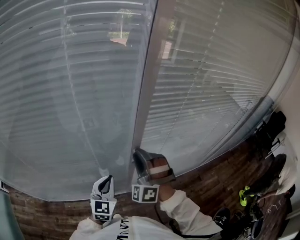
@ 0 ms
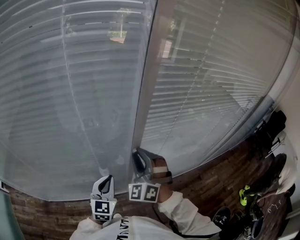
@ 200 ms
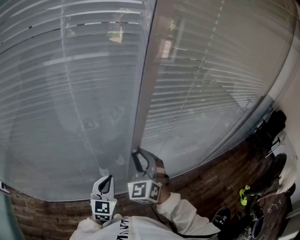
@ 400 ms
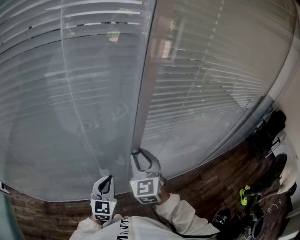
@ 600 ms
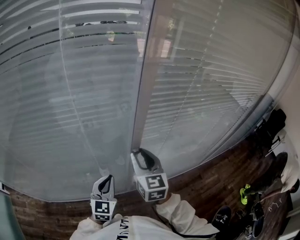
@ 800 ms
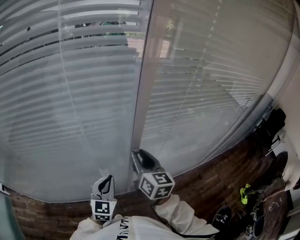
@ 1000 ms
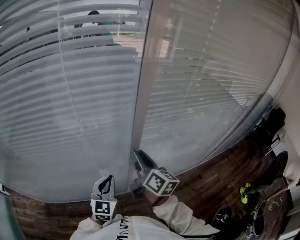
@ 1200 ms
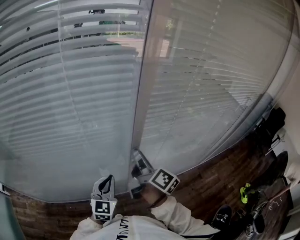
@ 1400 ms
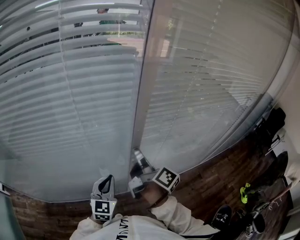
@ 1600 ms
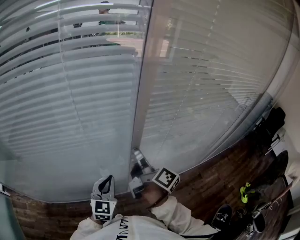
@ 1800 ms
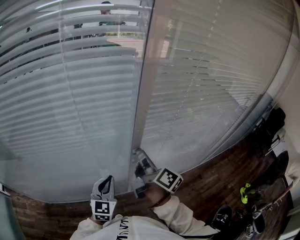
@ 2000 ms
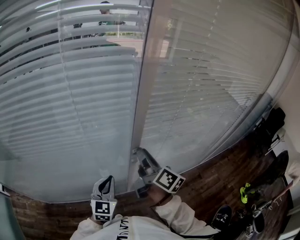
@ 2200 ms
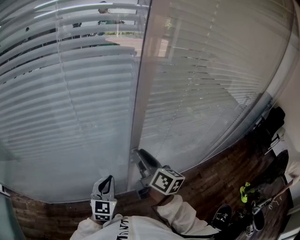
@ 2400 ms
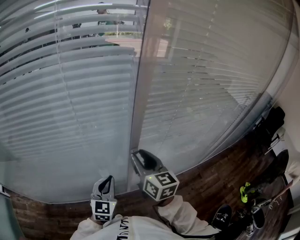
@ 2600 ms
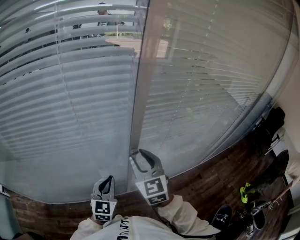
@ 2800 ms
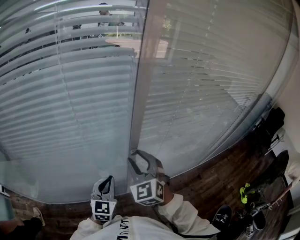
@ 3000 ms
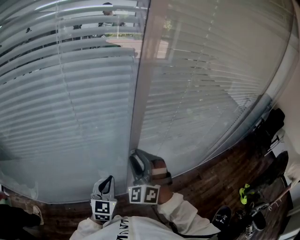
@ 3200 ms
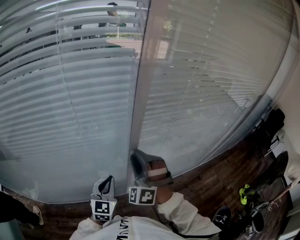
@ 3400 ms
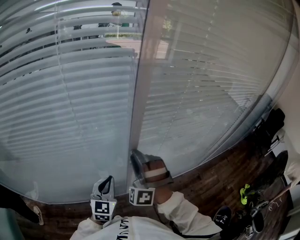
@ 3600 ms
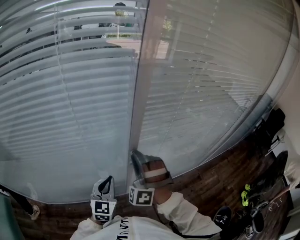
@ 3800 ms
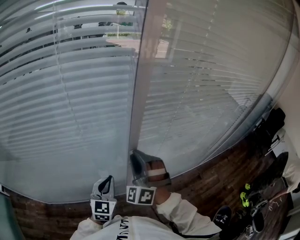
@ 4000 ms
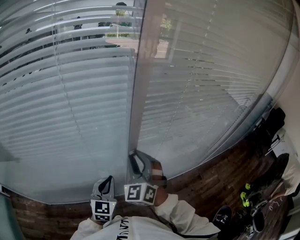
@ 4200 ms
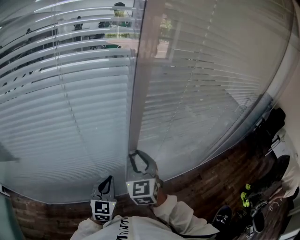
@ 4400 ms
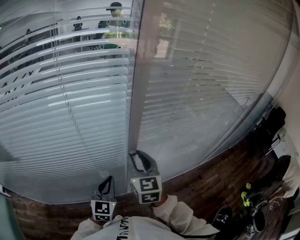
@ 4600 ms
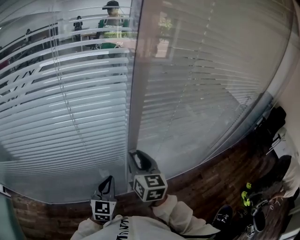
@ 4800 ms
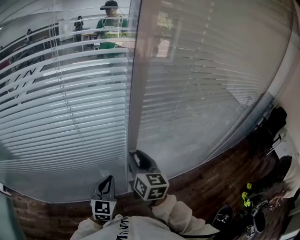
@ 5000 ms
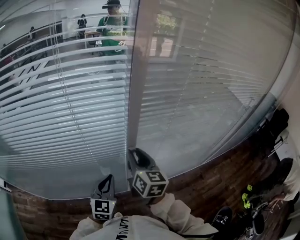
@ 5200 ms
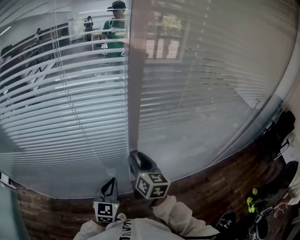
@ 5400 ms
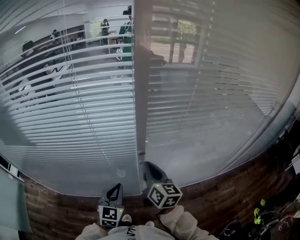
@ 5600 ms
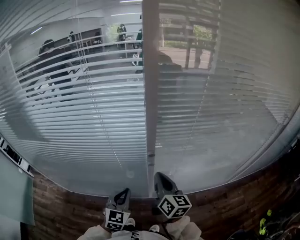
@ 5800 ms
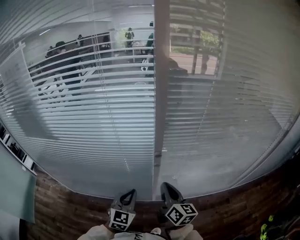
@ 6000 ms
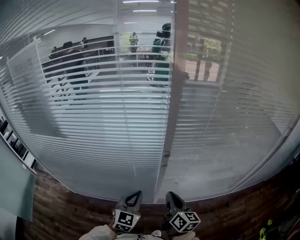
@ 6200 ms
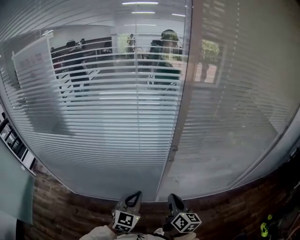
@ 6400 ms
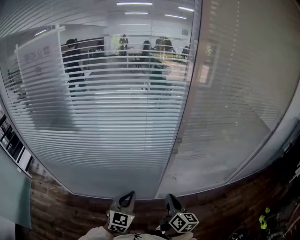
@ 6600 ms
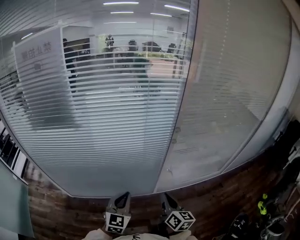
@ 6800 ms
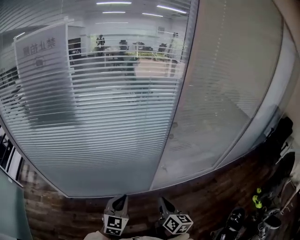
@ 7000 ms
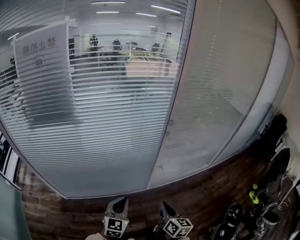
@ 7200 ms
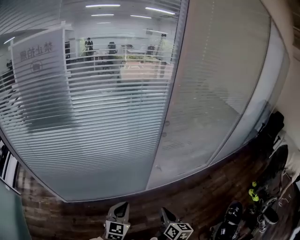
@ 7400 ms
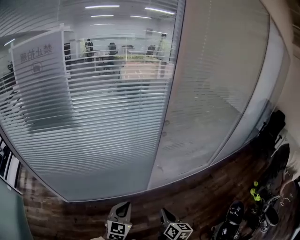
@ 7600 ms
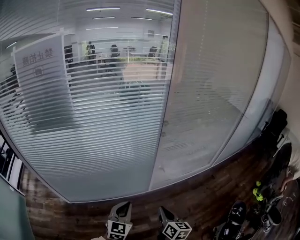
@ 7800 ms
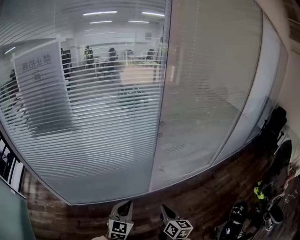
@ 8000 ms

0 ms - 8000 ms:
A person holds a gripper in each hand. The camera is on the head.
0 ms - 1600 ms: The right gripper twists some 150 degrees clockwise, seen from behind.
1600 ms - 3200 ms: The right gripper rolls counterclockwise, seen from behind, by roughly 130 degrees.
3200 ms - 4800 ms: The right gripper rotates around the line of its fingers by about 70 degrees, clockwise from behind.
4800 ms - 6400 ms: The right gripper travels backward and downward by approximately 20 cm, changes its angle by roughly 20 degrees, and closes its fingers. The left gripper goes roughly 10 cm backward.
6400 ms - 8000 ms: The right gripper shifts roughly 20 cm backward. Meanwhile the left gripper moves backward and to the left, roughly 20 cm.

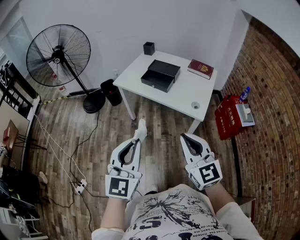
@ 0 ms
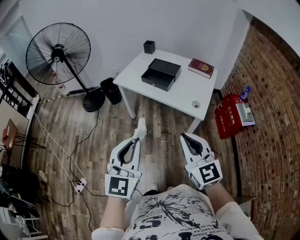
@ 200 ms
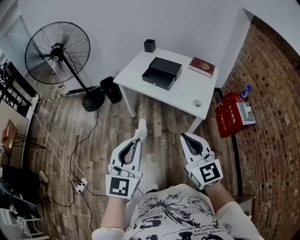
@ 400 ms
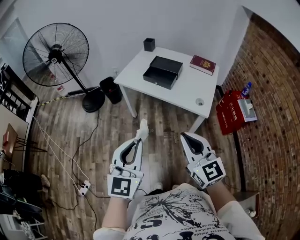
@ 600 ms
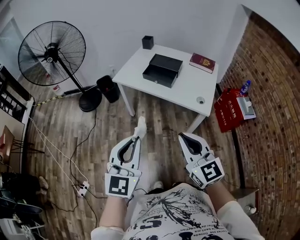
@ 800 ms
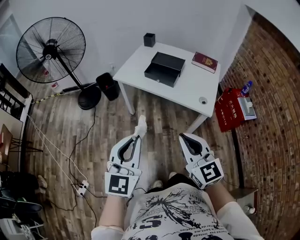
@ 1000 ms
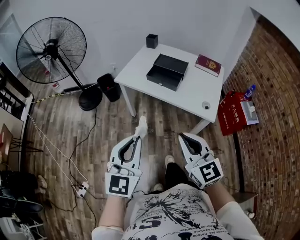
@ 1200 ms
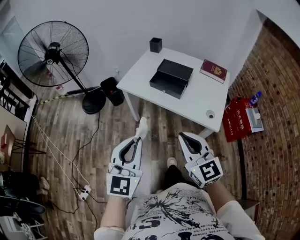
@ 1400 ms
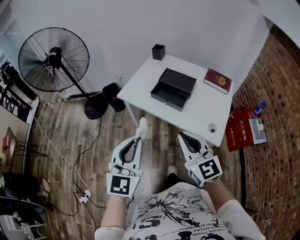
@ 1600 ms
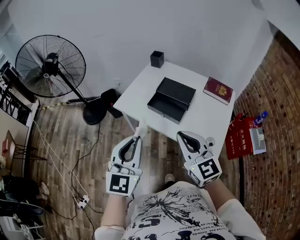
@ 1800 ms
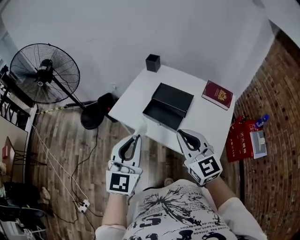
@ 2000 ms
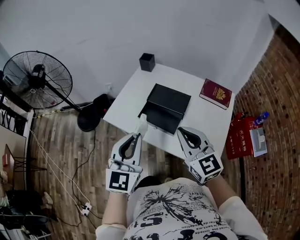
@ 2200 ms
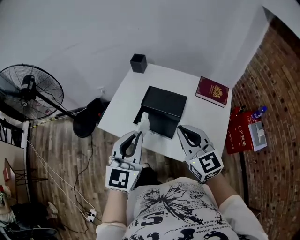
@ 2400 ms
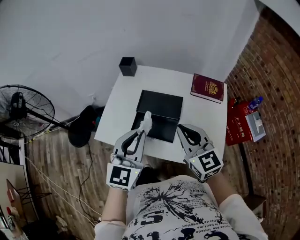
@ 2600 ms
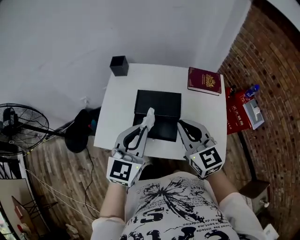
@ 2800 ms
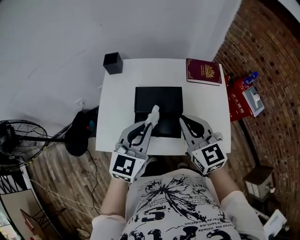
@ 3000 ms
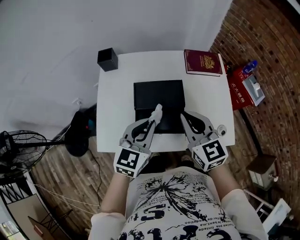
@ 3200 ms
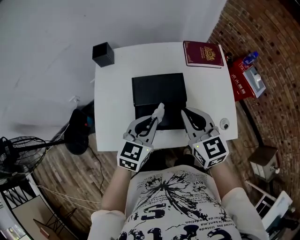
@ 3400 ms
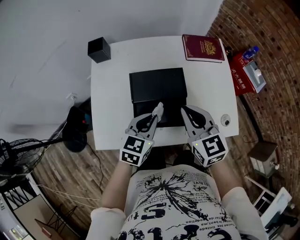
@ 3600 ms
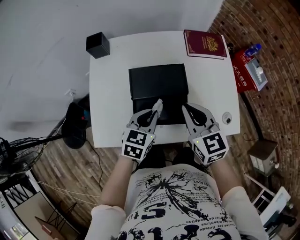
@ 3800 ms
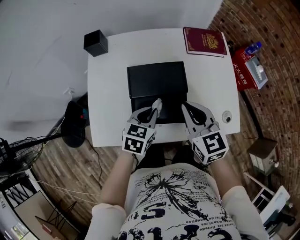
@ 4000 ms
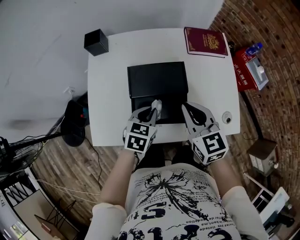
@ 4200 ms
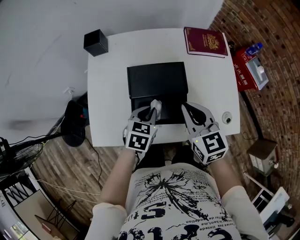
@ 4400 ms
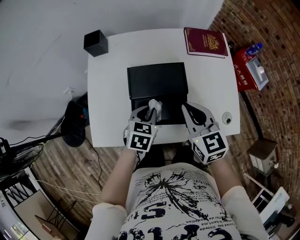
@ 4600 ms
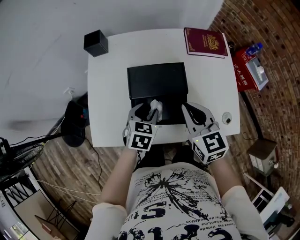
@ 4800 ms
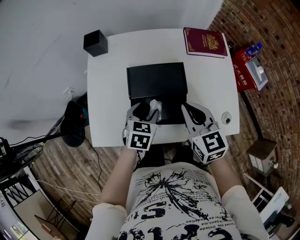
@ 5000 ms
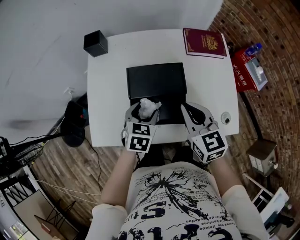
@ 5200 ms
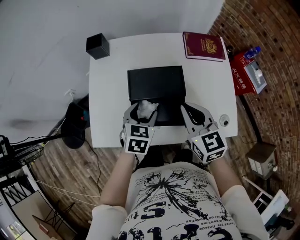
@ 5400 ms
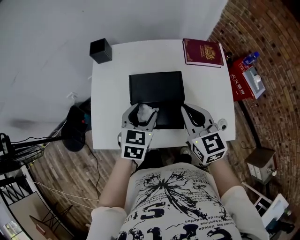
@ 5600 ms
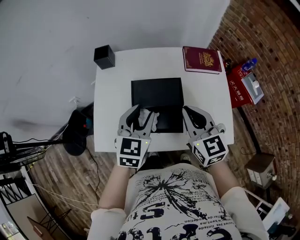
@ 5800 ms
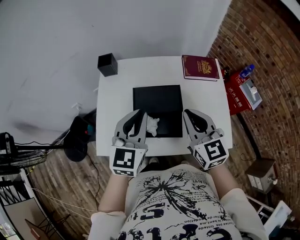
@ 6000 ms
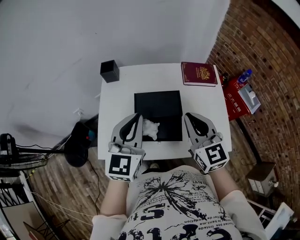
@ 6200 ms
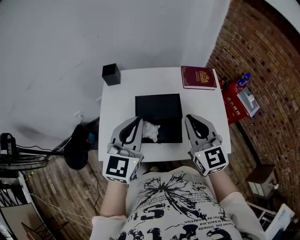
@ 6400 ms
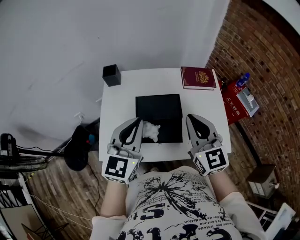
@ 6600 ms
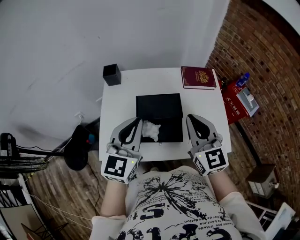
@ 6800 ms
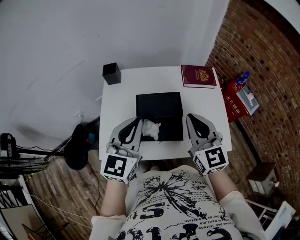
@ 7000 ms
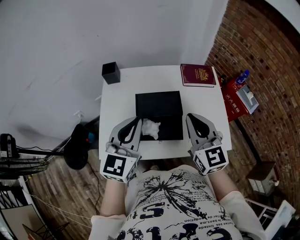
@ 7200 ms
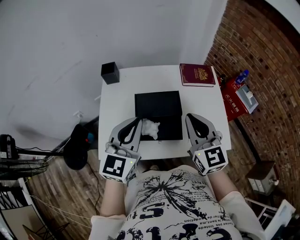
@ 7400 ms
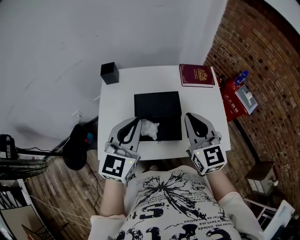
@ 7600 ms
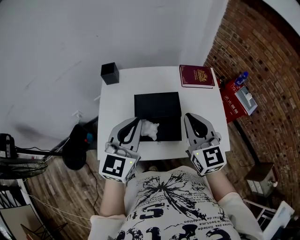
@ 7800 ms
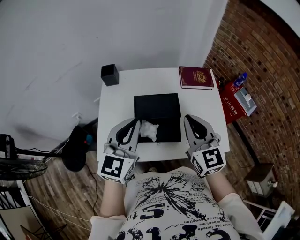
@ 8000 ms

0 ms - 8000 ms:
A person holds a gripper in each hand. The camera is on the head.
0 ms - 1600 ms: The two grippers go some 25 cm forward.
1600 ms - 3200 ms: The two grippers travel together, about 40 cm. The left gripper swivels roughly 50 degrees. Meanwhile the right gripper turns by roughly 30 degrees.
3200 ms - 4800 ms: The left gripper heads downward, covering approximately 20 cm, swivels some 30 degrees, and opens its fingers; the right gripper heads downward, covering about 10 cm.
4800 ms - 6400 ms: The right gripper goes roughly 15 cm upward. Meanwhile the left gripper travels upward by some 30 cm, angles its fingers upward, by about 40 degrees, and closes.
6400 ms - 8000 ms: The grippers stay close to where they were, moving slightly.

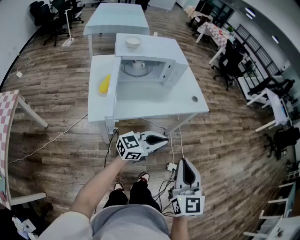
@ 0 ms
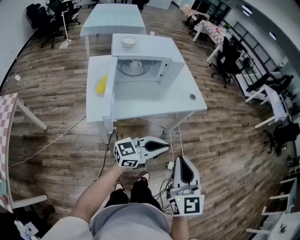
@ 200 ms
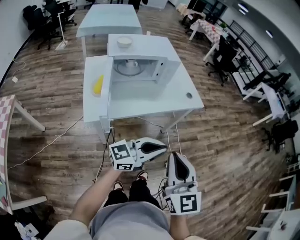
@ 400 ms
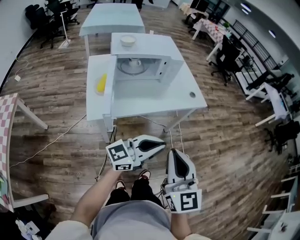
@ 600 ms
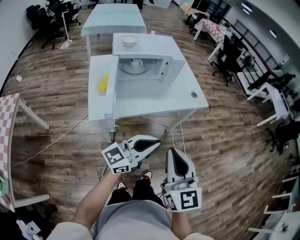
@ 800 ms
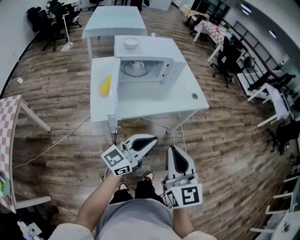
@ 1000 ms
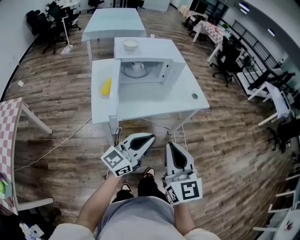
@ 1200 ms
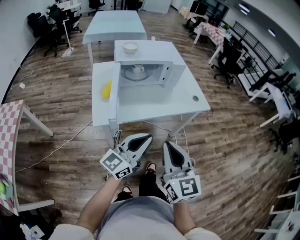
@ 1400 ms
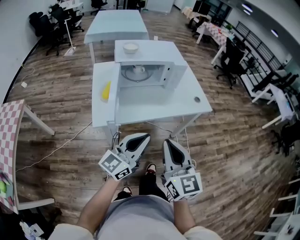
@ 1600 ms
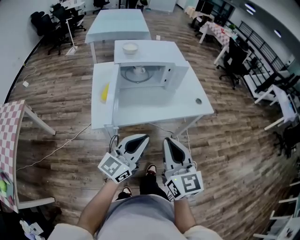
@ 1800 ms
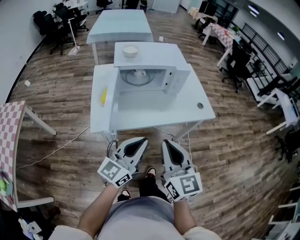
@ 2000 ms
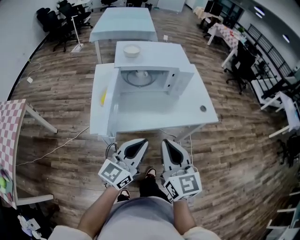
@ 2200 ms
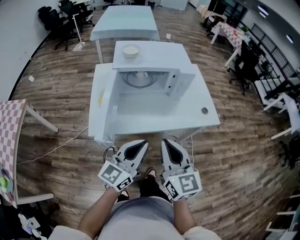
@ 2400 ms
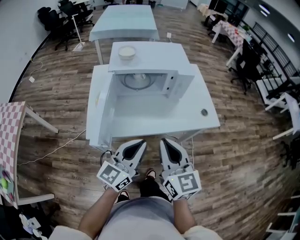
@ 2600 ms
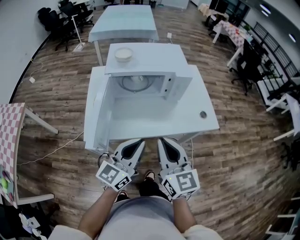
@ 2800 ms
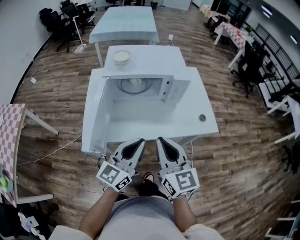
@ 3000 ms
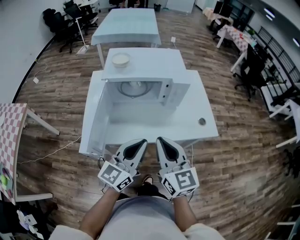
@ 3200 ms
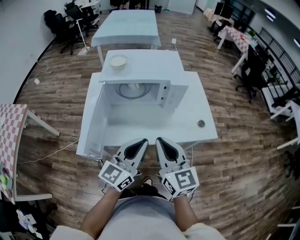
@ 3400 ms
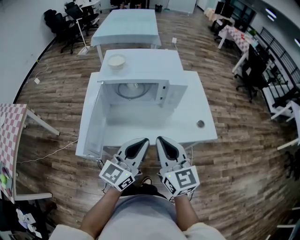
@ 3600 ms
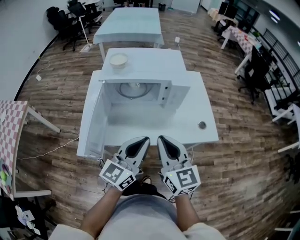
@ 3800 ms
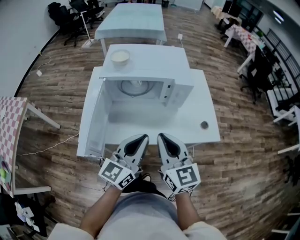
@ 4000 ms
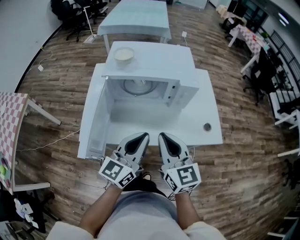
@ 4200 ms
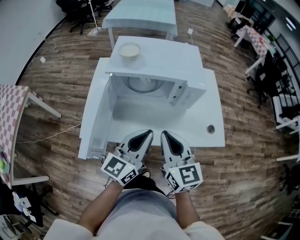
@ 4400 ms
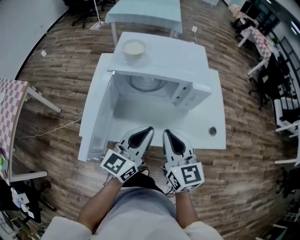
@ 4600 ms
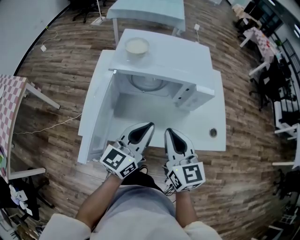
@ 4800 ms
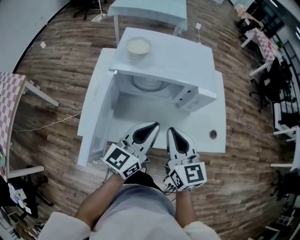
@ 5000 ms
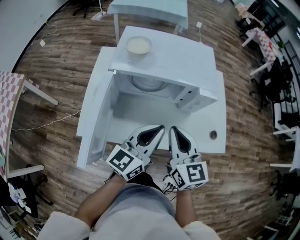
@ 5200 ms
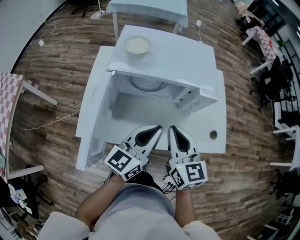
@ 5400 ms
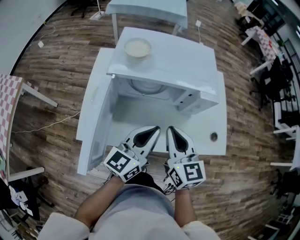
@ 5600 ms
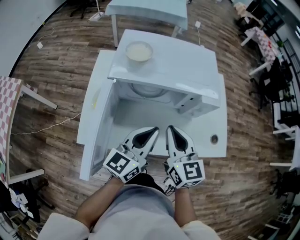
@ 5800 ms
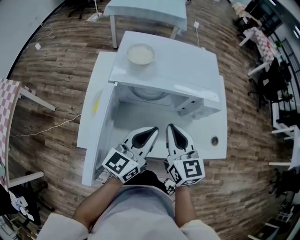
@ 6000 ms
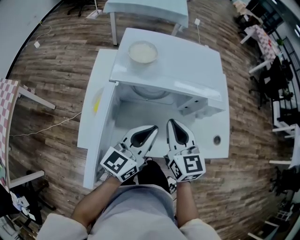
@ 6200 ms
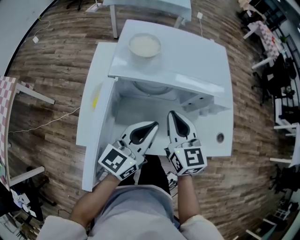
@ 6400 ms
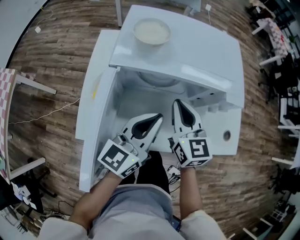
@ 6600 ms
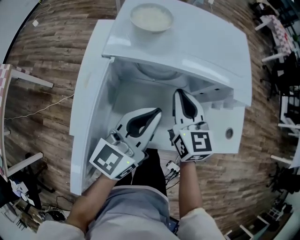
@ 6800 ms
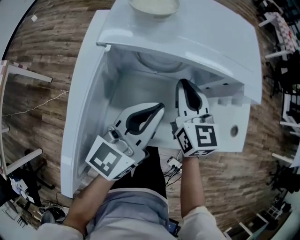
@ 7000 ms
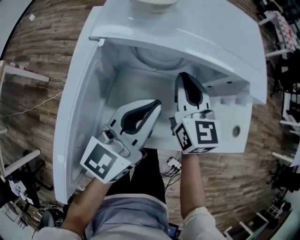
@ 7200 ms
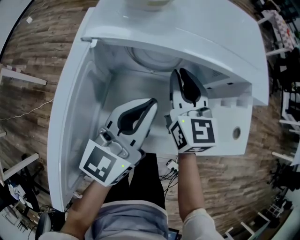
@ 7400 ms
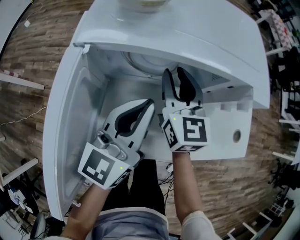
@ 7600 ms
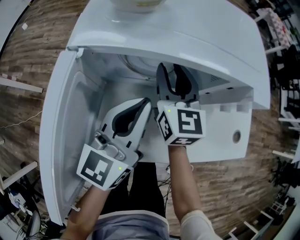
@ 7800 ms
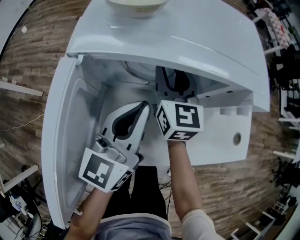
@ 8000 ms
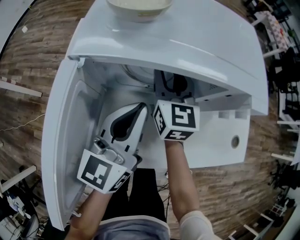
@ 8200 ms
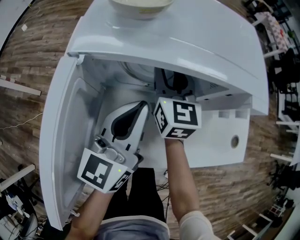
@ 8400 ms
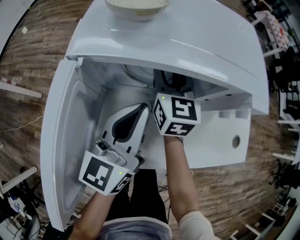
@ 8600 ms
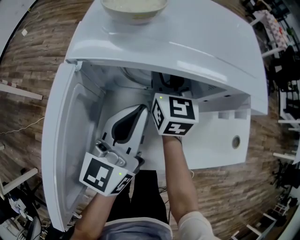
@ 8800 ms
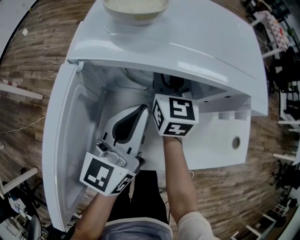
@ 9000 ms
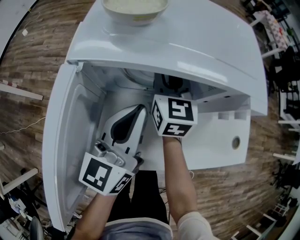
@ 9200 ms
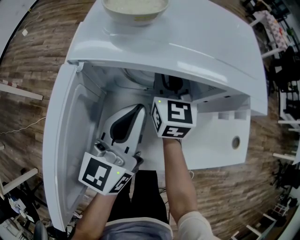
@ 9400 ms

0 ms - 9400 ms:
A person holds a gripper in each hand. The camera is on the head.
0 ms - 1600 ms: The right gripper moves to the left, about 10 cm; the left gripper moves to the left and upward, roughly 10 cm, and turns by some 30 degrees.
1600 ms - 3200 ms: The grippers both shift forward by about 15 cm.
3200 ms - 4800 ms: Both grippers travel together forward, about 10 cm.
4800 ms - 6200 ms: The left gripper is displaced forward by roughly 5 cm, while the right gripper travels forward by about 10 cm.
6200 ms - 7800 ms: The right gripper travels forward and downward by roughly 20 cm, and opens up; the left gripper is displaced downward and forward by roughly 10 cm.
7800 ms - 9400 ms: The grippers move only a little.
